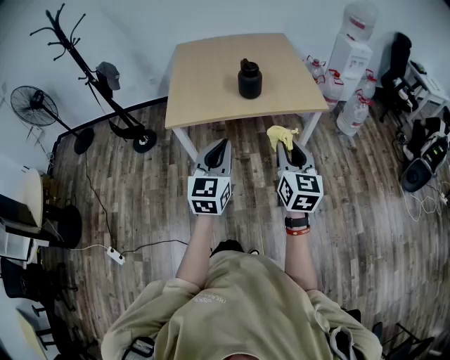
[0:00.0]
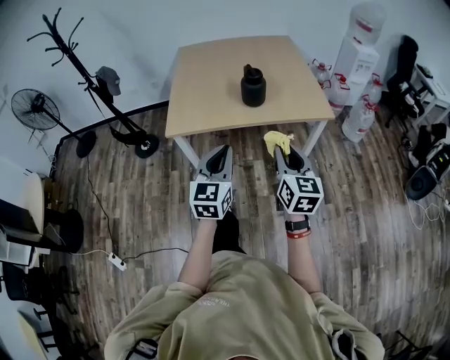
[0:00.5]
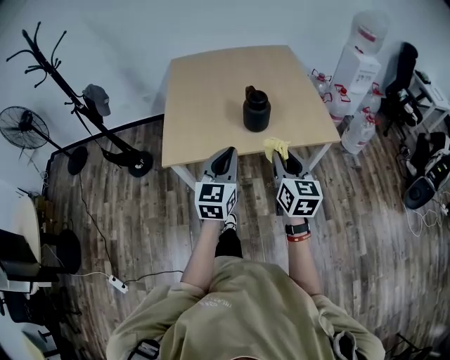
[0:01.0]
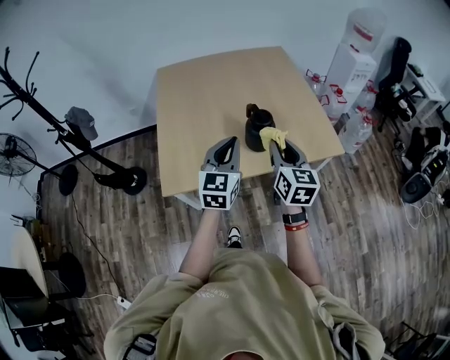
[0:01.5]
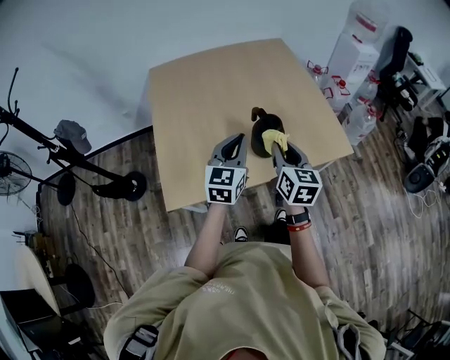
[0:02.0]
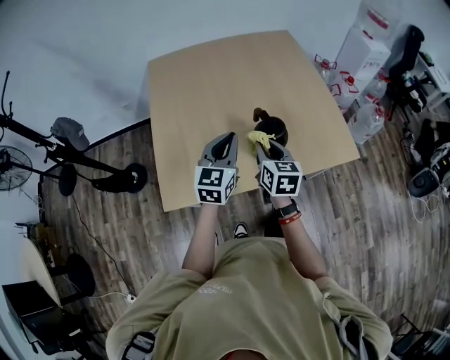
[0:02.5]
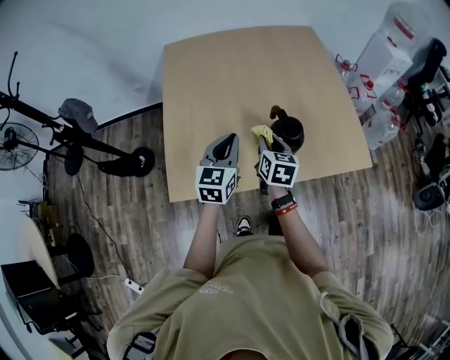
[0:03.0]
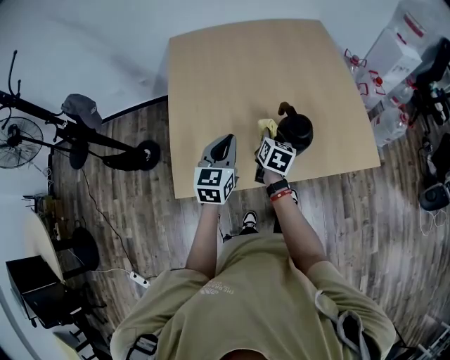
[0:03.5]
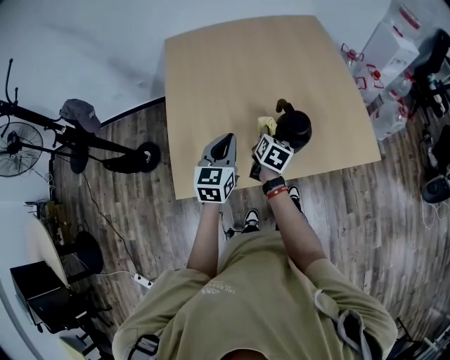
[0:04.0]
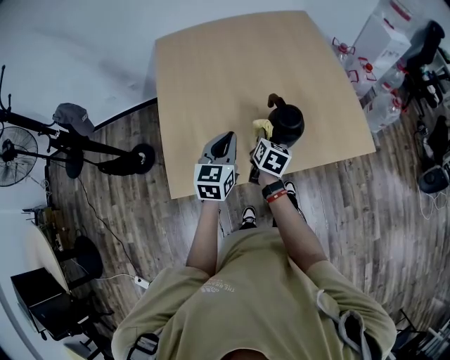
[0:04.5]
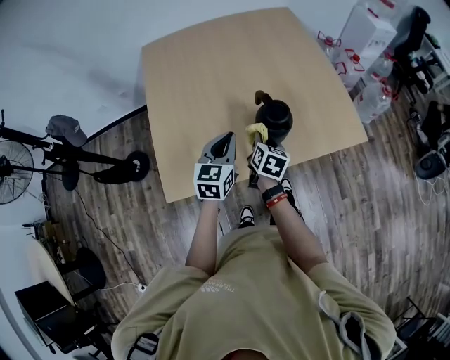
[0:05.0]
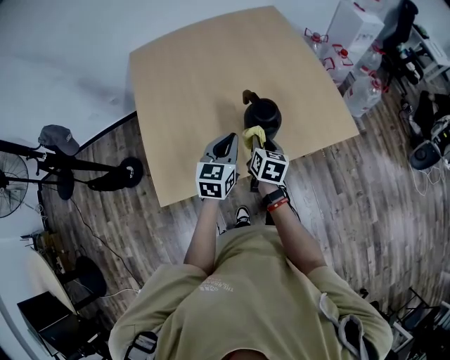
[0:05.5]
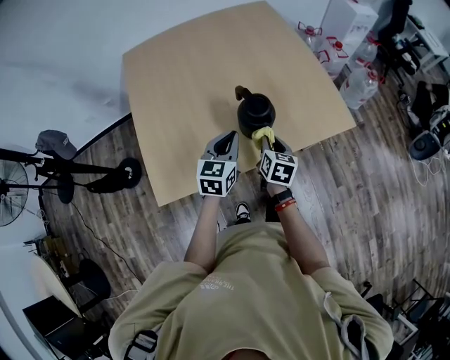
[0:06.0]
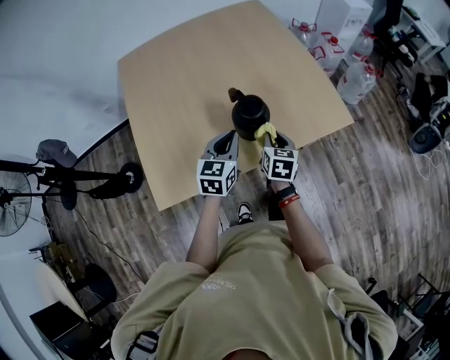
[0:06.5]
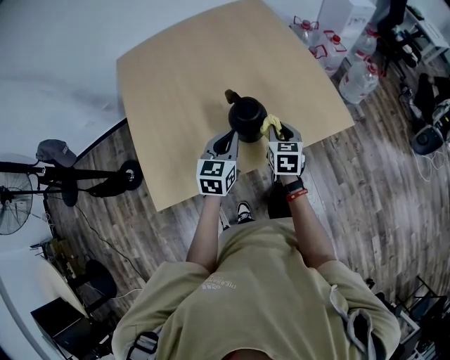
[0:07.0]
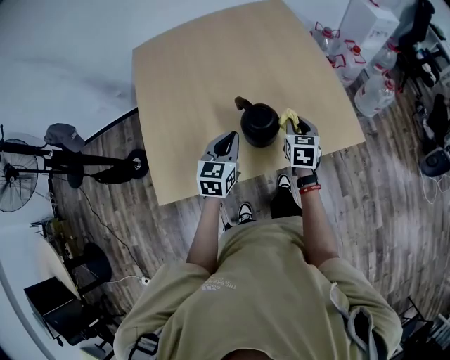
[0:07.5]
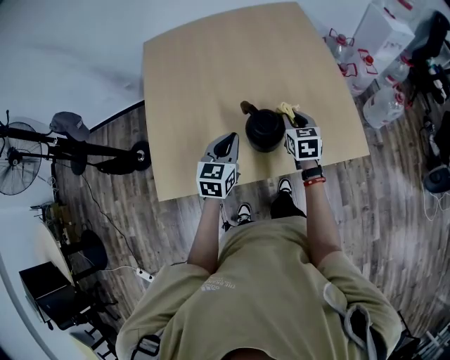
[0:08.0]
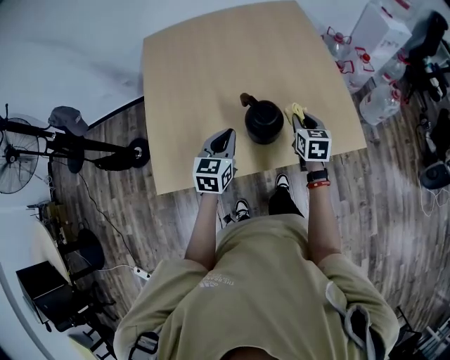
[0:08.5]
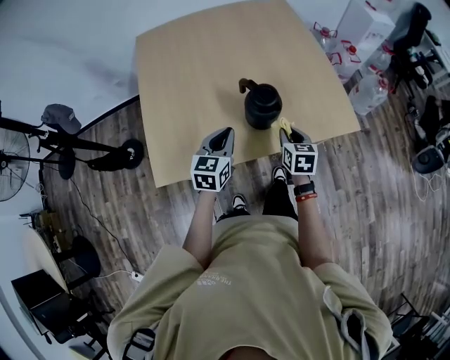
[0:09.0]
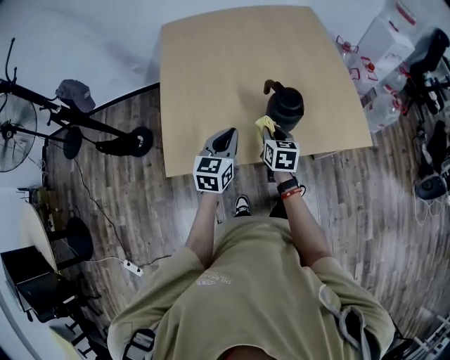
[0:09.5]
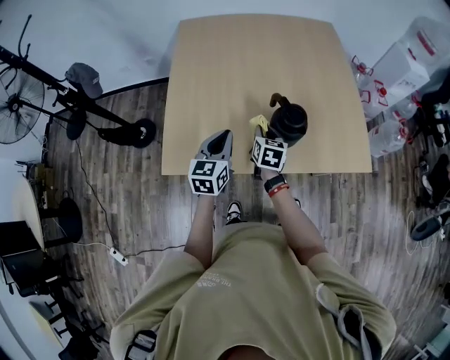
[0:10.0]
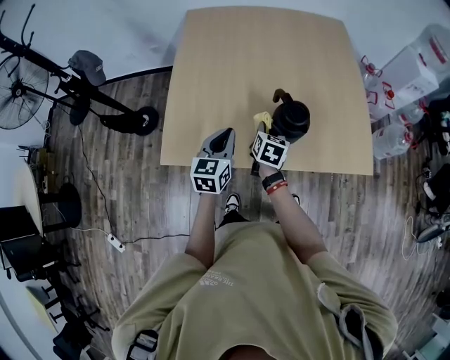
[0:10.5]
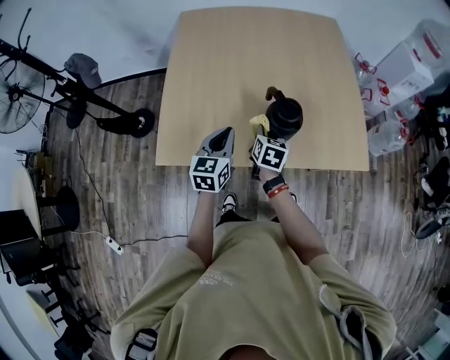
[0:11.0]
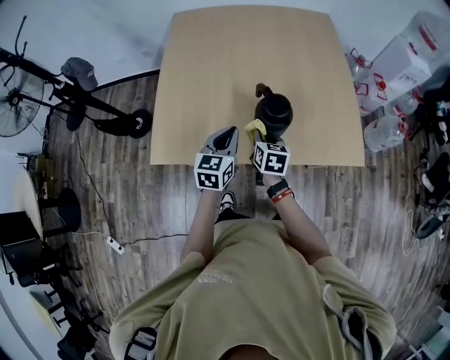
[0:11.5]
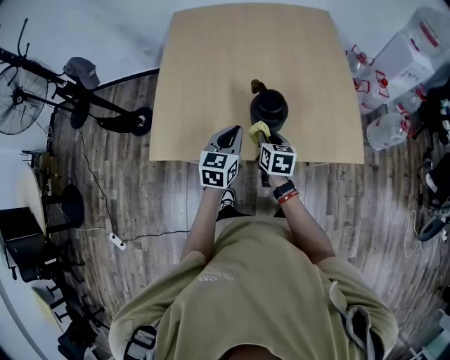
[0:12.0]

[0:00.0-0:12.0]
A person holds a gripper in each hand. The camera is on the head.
0:00.0 to 0:02.0: The pair of grippers is taken forward, approximately 60 cm.
0:02.0 to 0:04.0: The right gripper heads downward, forward and to the left, covering roughly 25 cm, and changes its angle by approximately 30 degrees; the left gripper shifts some 15 cm downward, to the left and forward.
0:04.0 to 0:06.0: The right gripper shifts approximately 15 cm to the right and backward; the left gripper moves to the right, about 15 cm.
0:06.0 to 0:08.0: The left gripper shifts some 5 cm forward. Meanwhile the right gripper heads forward, covering some 20 cm, and swivels approximately 30 degrees.
0:08.0 to 0:10.0: Both grippers move to the left and backward, approximately 20 cm.
0:10.0 to 0:12.0: The left gripper goes about 15 cm to the right. Meanwhile the right gripper goes about 10 cm to the right and backward.

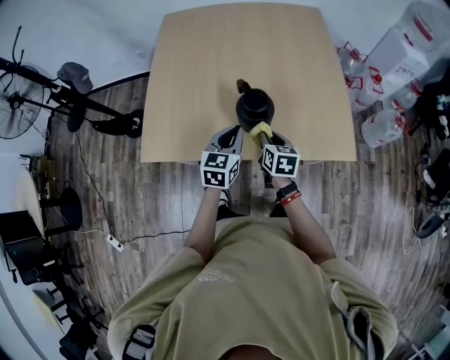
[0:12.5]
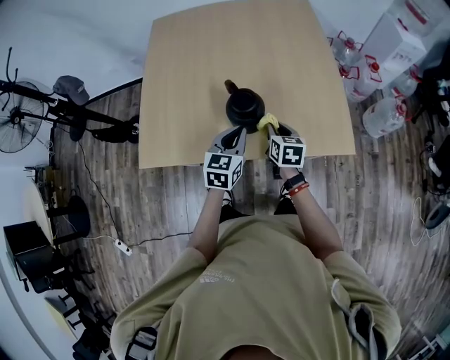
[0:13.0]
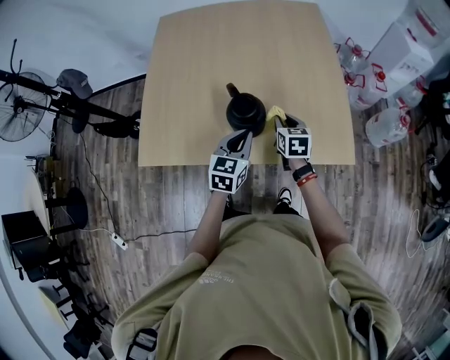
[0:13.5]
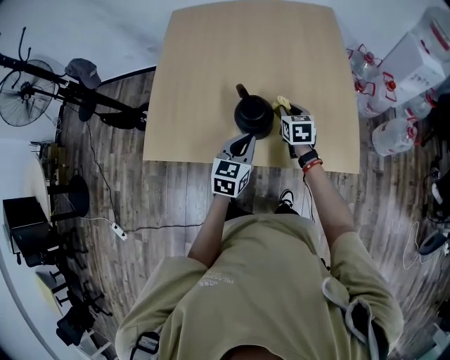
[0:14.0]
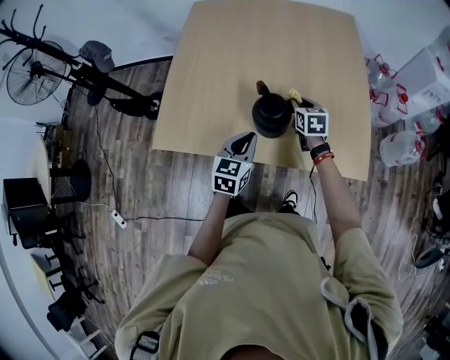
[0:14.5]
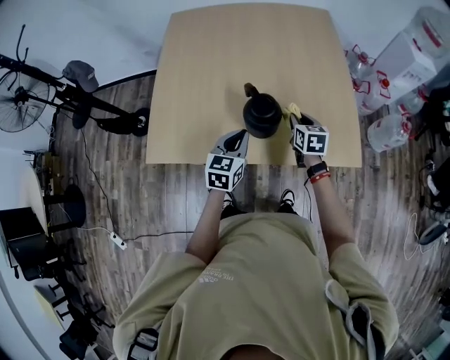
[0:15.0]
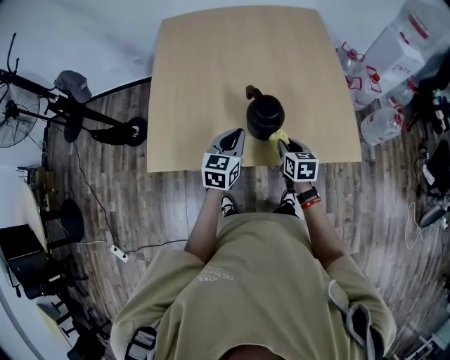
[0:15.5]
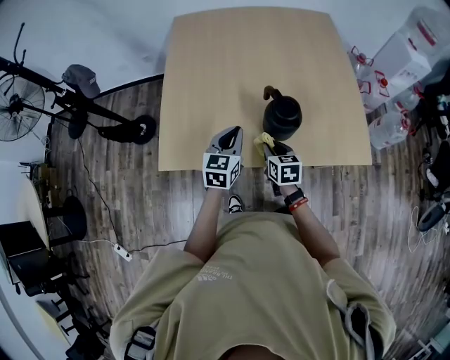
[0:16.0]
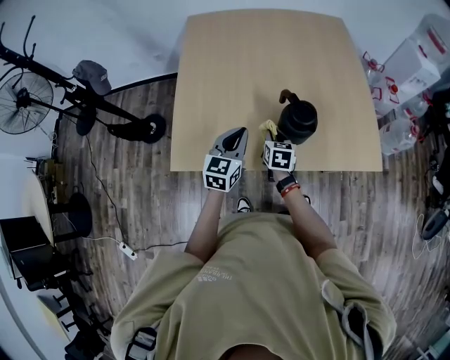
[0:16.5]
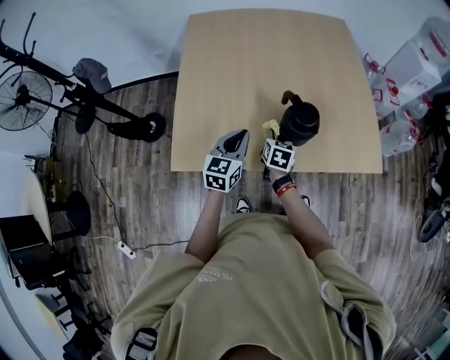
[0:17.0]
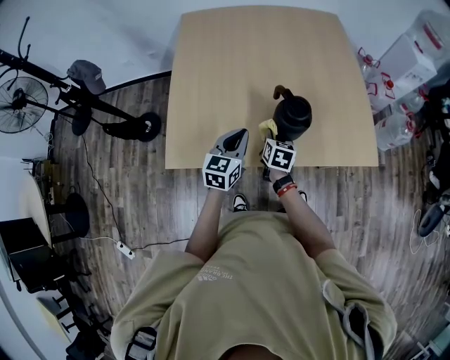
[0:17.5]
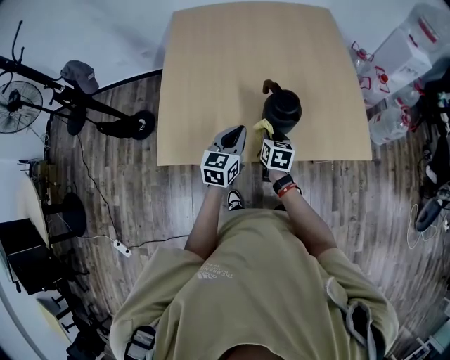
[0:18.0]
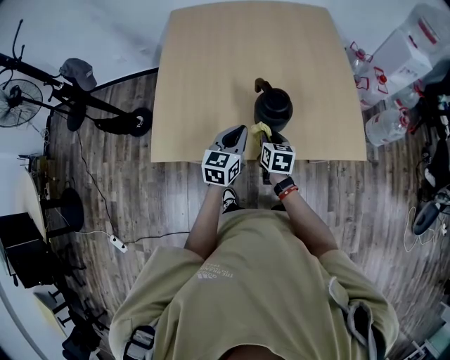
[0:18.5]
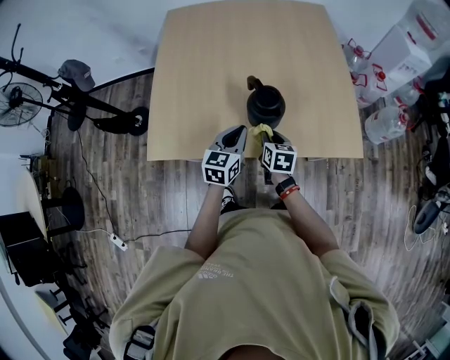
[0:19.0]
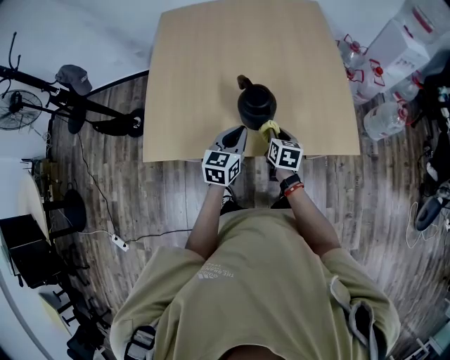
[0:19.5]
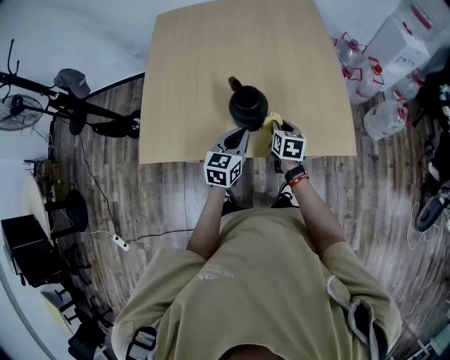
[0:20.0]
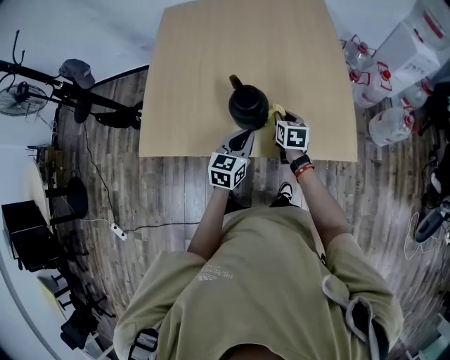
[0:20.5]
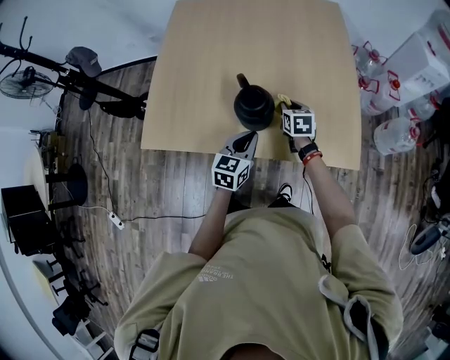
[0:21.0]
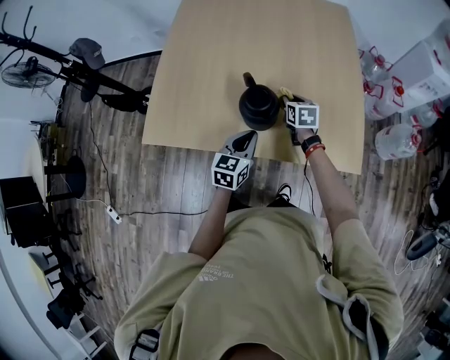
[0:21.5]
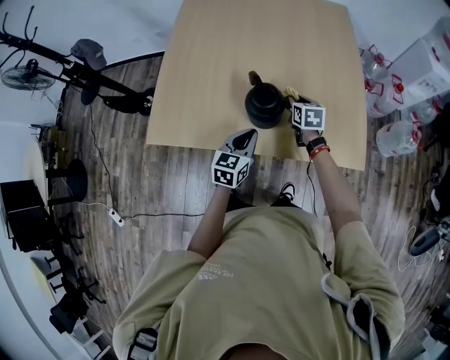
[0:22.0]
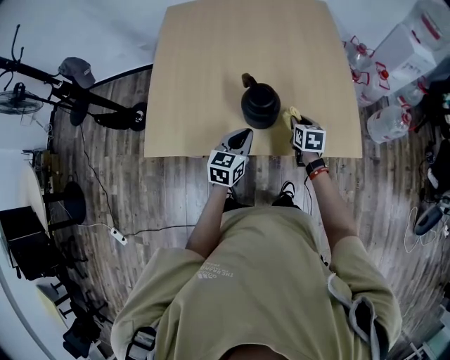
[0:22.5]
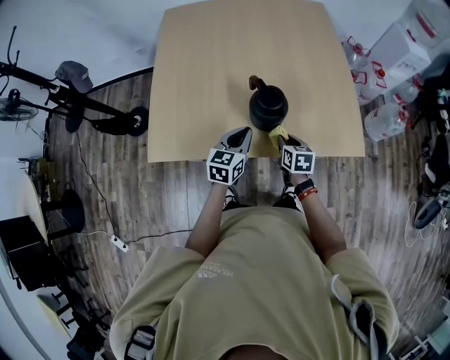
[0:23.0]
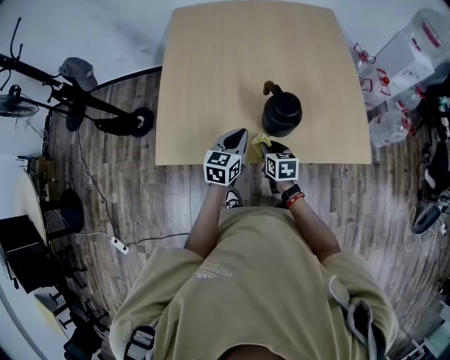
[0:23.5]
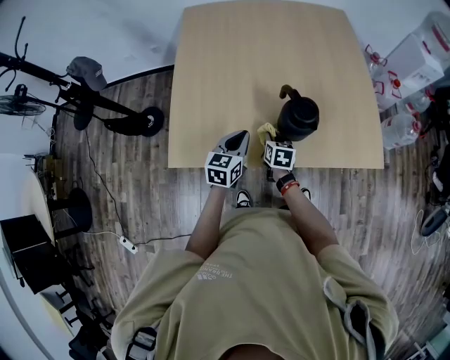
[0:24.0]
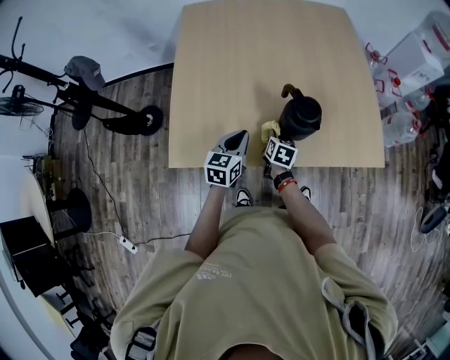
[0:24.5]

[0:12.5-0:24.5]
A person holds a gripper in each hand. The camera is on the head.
0:12.5 to 0:14.5: The left gripper reaches about 10 cm to the right, then returns; the right gripper shifts about 15 cm forward.
0:14.5 to 0:16.5: The right gripper heads to the left and backward, covering about 25 cm. The left gripper heads to the left, covering approximately 20 cm.
0:16.5 to 0:18.5: The two grippers go approximately 10 cm to the right.
0:18.5 to 0:20.5: The right gripper moves to the right and forward, some 20 cm; the left gripper is displaced to the right by some 15 cm.
0:20.5 to 0:22.5: The left gripper travels to the left by approximately 10 cm. The right gripper moves roughly 10 cm forward and comes back.
0:22.5 to 0:24.5: The grippers both shift to the left by about 20 cm.

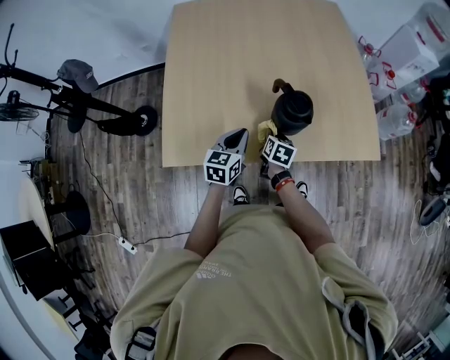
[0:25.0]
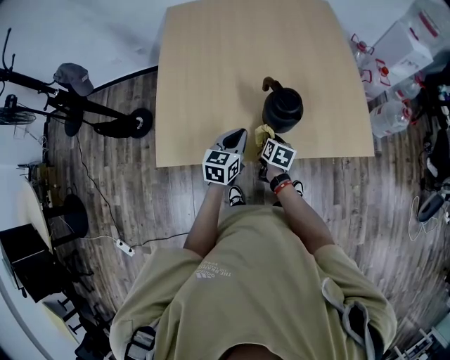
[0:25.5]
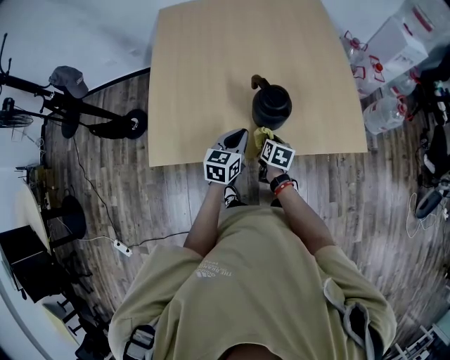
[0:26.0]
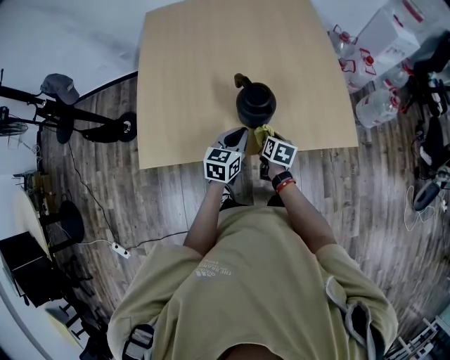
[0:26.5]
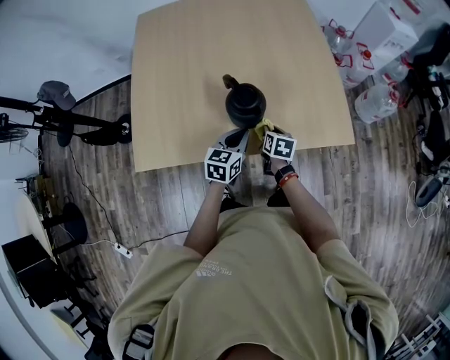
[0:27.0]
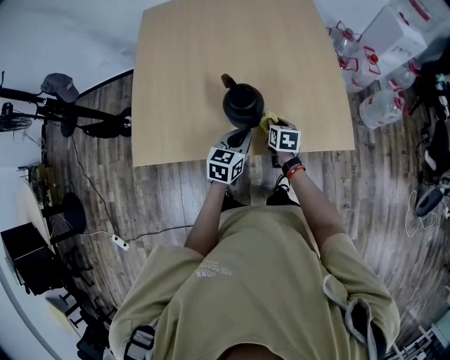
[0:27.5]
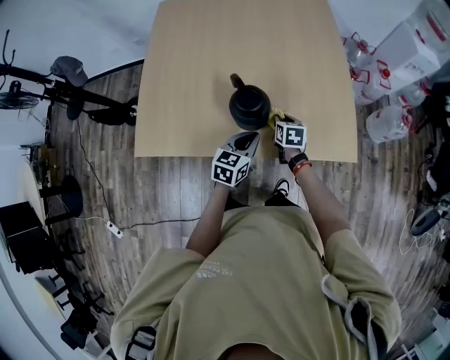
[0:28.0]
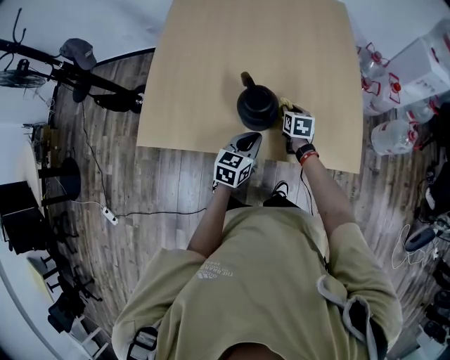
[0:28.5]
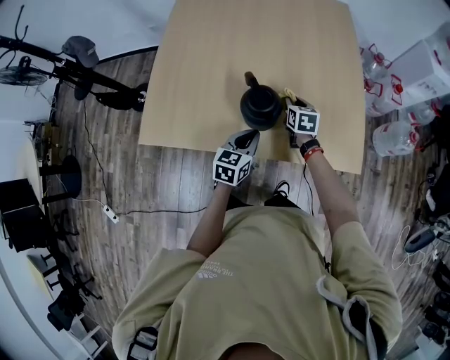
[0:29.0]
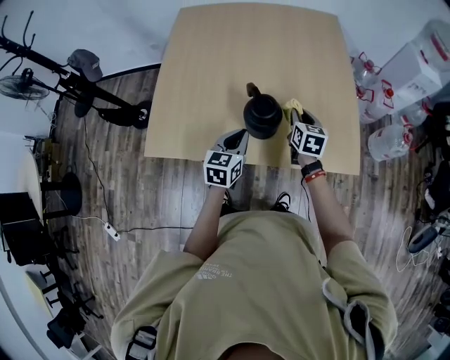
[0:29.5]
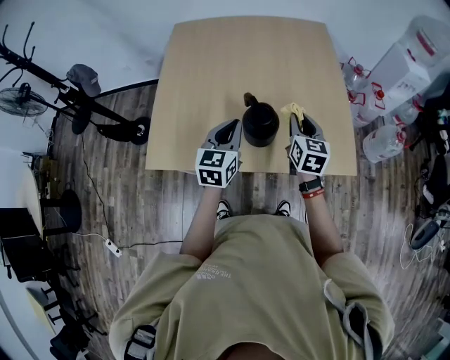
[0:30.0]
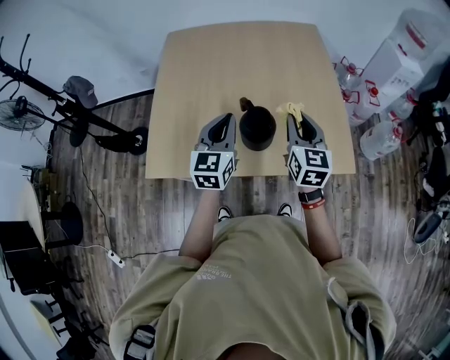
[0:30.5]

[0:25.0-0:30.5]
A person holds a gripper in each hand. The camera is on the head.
0:25.0 to 0:27.0: The two grippers go about 20 cm to the right.
0:27.0 to 0:28.5: The right gripper heads forward, covering some 15 cm, and swivels about 20 degrees.
0:28.5 to 0:30.5: The right gripper moves upward, some 30 cm, and angles its fingers upward, by about 30 degrees. Meanwhile the left gripper travels upward and to the left by about 25 cm, and changes its angle by some 30 degrees.
